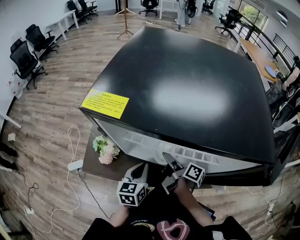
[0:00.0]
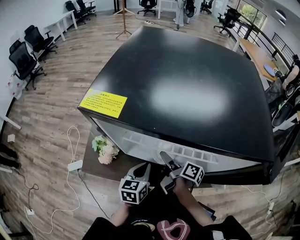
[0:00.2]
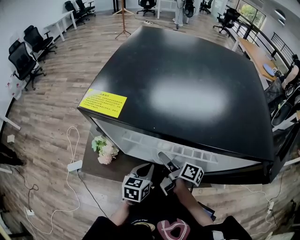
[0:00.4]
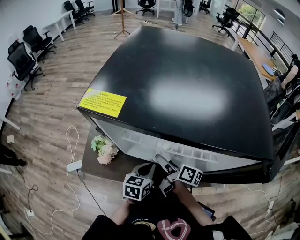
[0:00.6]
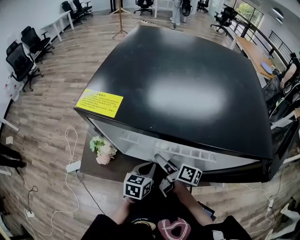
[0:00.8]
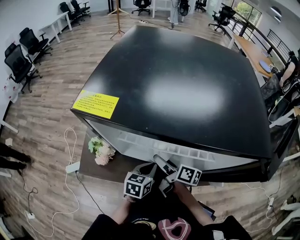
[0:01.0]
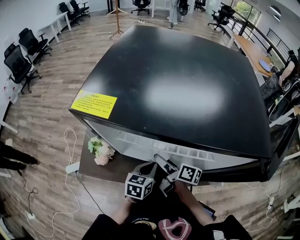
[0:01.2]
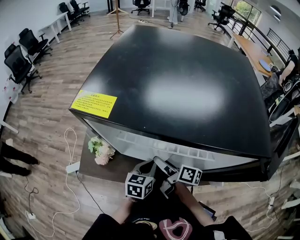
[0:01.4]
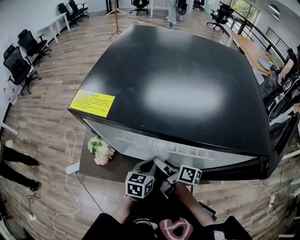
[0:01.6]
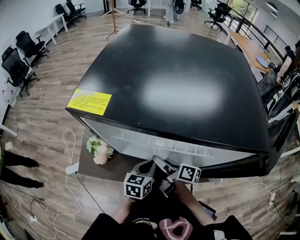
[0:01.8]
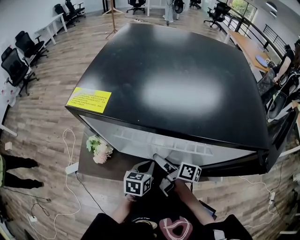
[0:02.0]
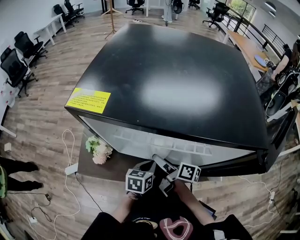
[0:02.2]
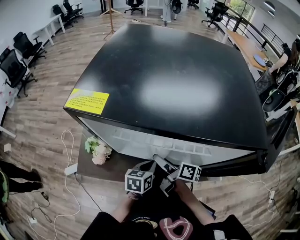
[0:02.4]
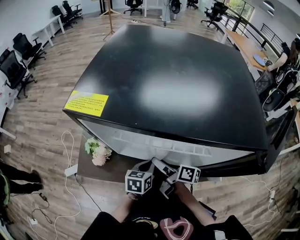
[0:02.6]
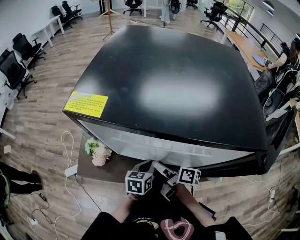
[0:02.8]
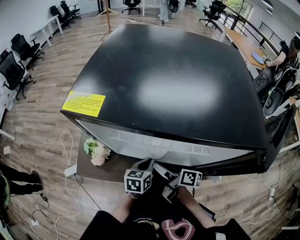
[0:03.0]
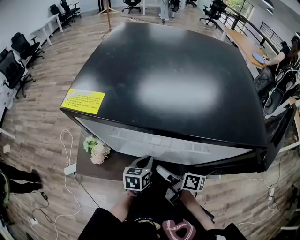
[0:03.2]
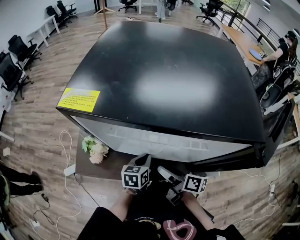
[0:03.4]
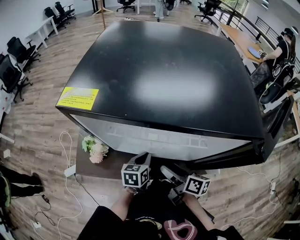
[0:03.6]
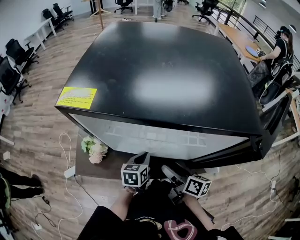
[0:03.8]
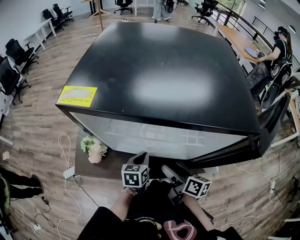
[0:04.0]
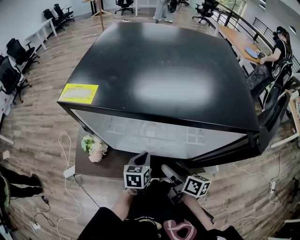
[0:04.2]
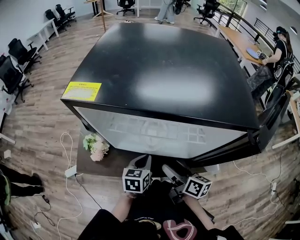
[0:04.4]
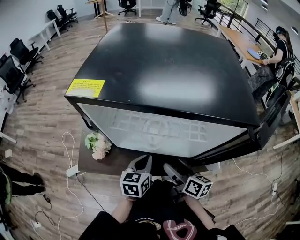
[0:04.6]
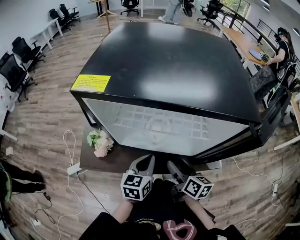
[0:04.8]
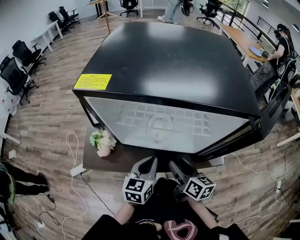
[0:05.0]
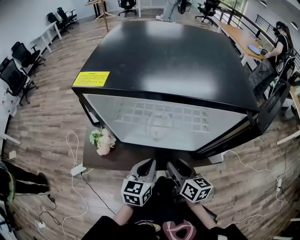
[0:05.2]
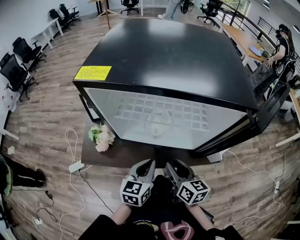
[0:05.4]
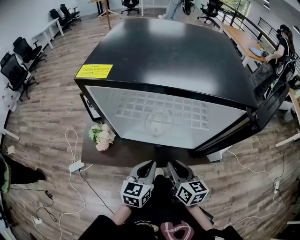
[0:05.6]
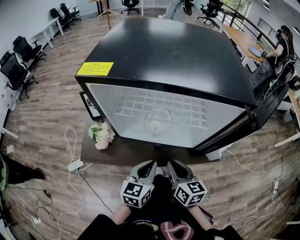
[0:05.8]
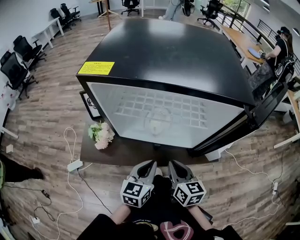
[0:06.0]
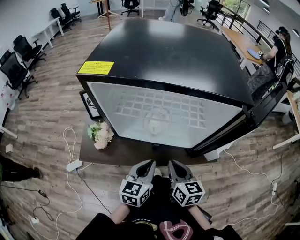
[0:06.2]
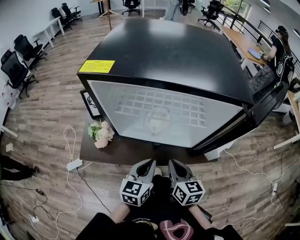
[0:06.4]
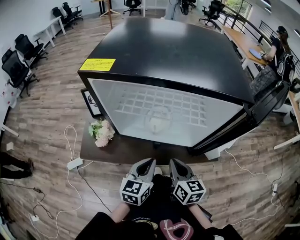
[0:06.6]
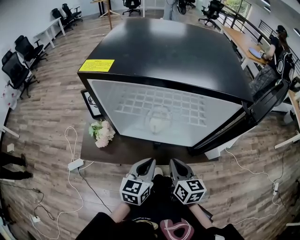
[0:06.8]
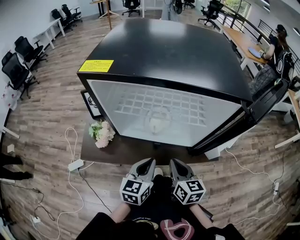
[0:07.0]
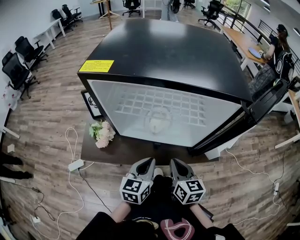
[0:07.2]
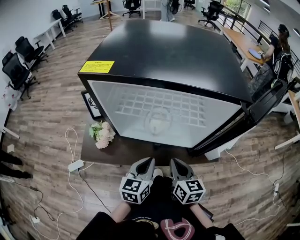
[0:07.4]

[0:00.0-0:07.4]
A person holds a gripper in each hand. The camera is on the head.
0:00.0 to 0:01.4: The left gripper moves some 5 cm.
0:04.4 to 0:06.0: The left gripper changes place by roughly 10 cm.

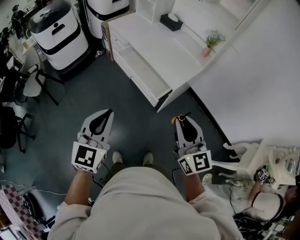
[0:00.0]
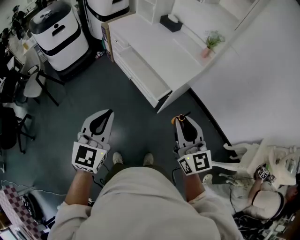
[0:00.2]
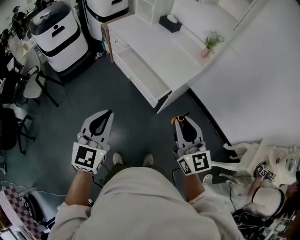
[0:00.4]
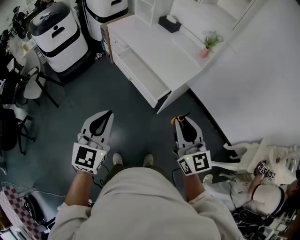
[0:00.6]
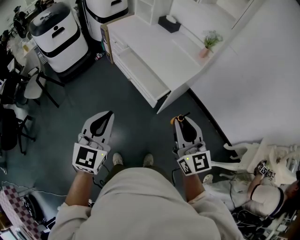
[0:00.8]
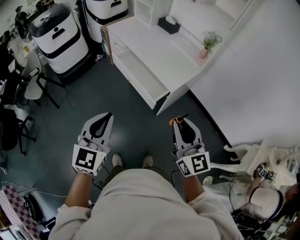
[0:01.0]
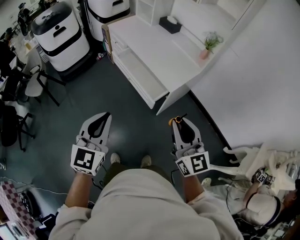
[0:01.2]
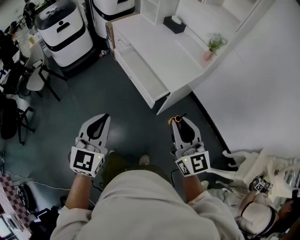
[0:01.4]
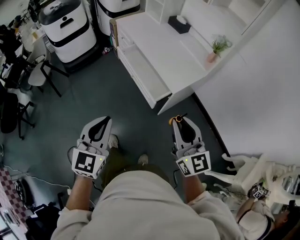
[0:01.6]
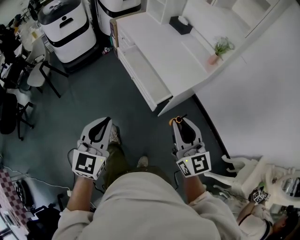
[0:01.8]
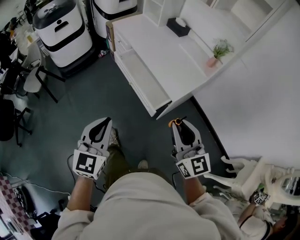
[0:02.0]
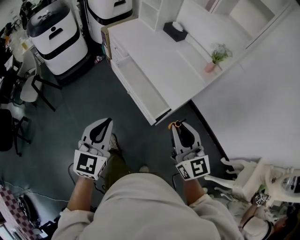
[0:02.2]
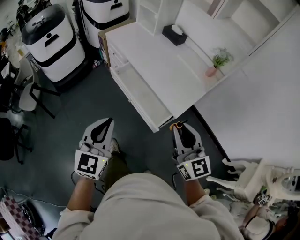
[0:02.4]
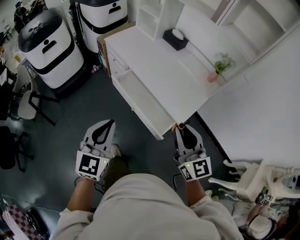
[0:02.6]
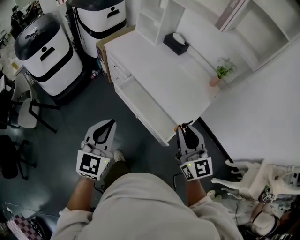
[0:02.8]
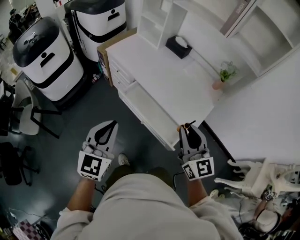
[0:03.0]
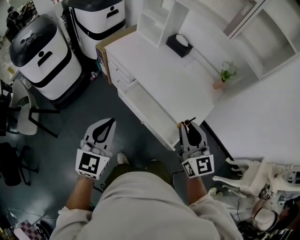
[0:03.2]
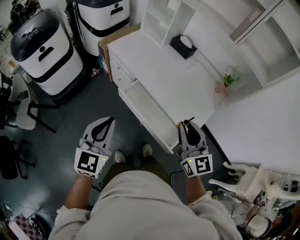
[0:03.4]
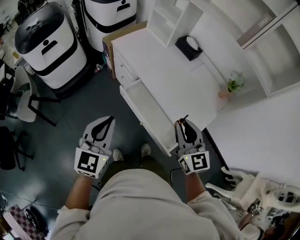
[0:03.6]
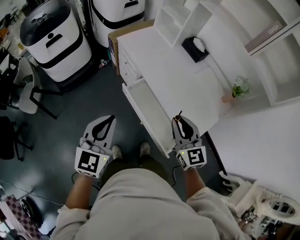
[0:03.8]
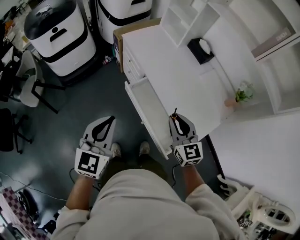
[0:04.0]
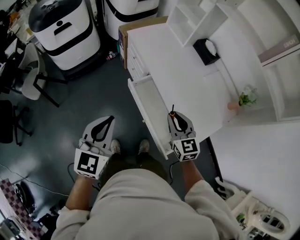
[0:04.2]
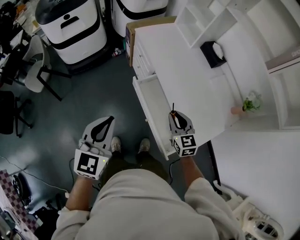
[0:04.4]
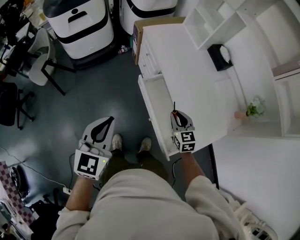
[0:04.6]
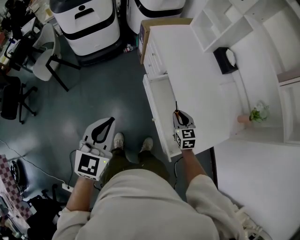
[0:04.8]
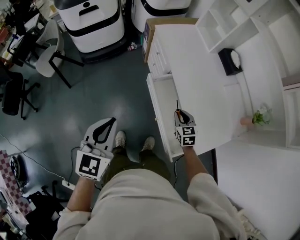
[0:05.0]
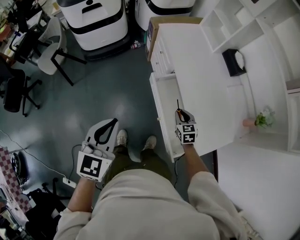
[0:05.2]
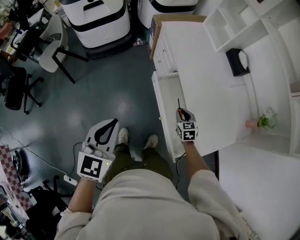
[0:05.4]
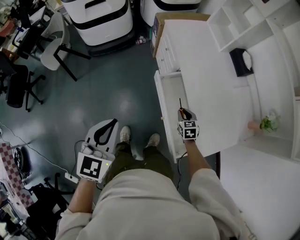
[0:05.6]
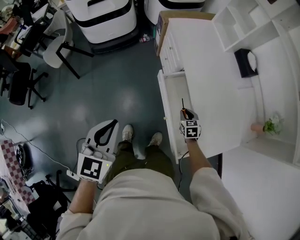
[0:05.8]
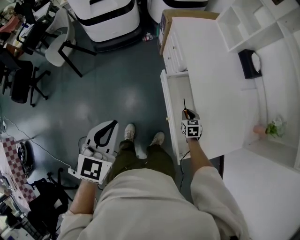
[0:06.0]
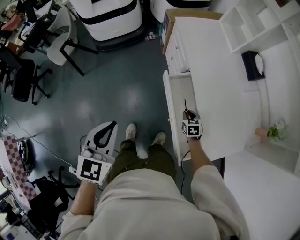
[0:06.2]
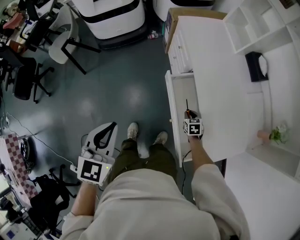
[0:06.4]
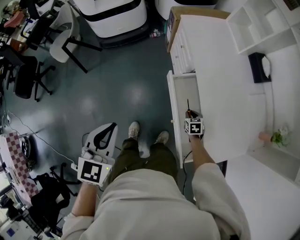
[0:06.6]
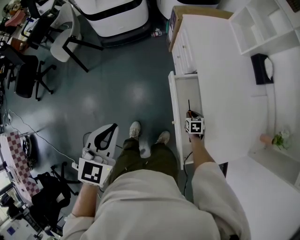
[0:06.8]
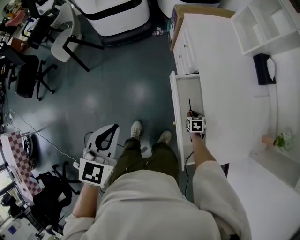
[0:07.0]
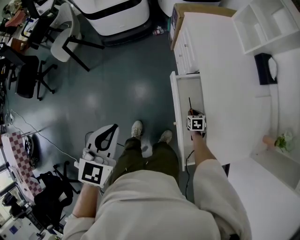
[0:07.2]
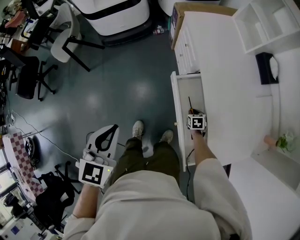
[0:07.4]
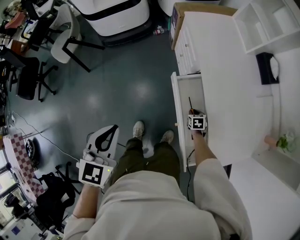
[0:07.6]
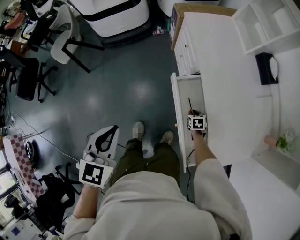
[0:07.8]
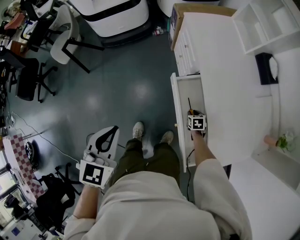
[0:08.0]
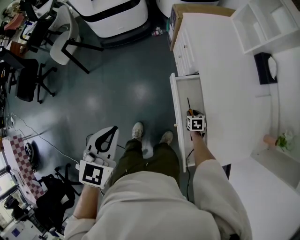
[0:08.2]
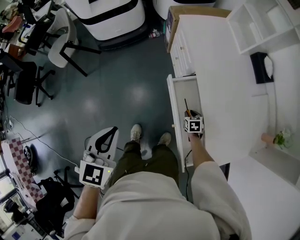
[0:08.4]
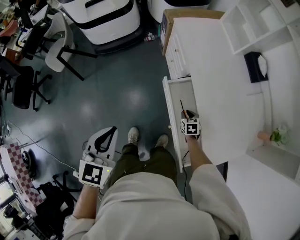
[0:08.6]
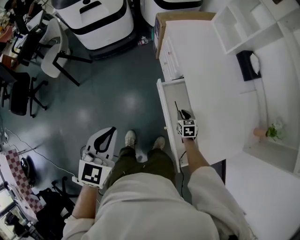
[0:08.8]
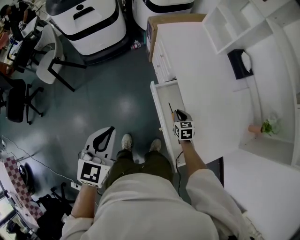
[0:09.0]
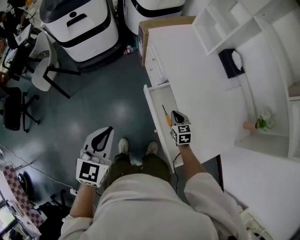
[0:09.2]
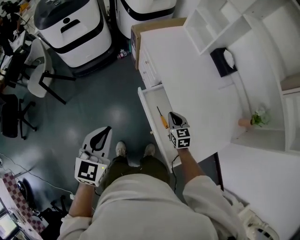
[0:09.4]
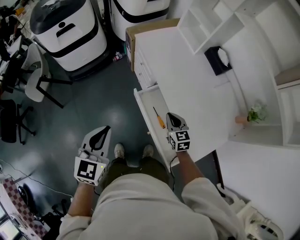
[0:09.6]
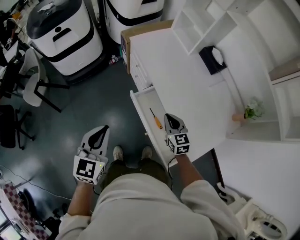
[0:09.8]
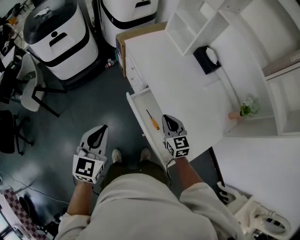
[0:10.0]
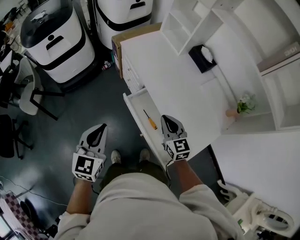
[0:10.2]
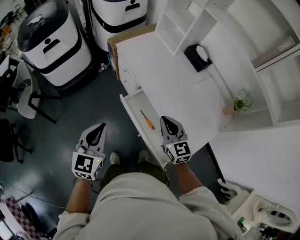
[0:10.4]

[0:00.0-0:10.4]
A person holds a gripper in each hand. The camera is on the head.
0:00.0 to 0:01.4: The grippers make only small movements.
0:01.4 to 0:03.0: Both grippers move forward and to the left, approximately 35 cm.
0:03.0 to 0:04.4: The right gripper shifts roughly 25 cm downward and forward, and turns by approximately 30 degrees; the left gripper ends up roughly 5 cm from where it was, and changes its angle by approximately 20 degrees.
0:04.4 to 0:06.0: The left gripper travels to the left by some 5 cm; the right gripper is displaced downward by some 25 cm, and swivels about 30 degrees.
0:06.0 to 0:07.4: The left gripper moves some 5 cm. Meanwhile the right gripper is displaced downward by some 10 cm.
0:07.4 to 0:09.0: The right gripper goes roughly 15 cm upward, and rotates roughly 20 degrees.
0:09.0 to 0:10.4: The right gripper travels upward by some 25 cm, and angles its fingers upward, by approximately 30 degrees. Meanwhile the left gripper shifts roughly 5 cm to the right.

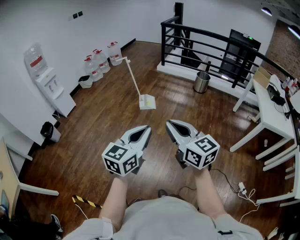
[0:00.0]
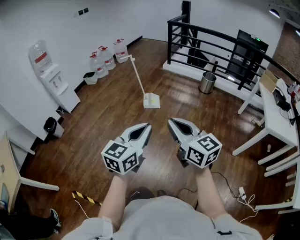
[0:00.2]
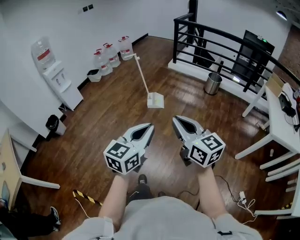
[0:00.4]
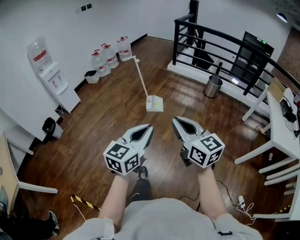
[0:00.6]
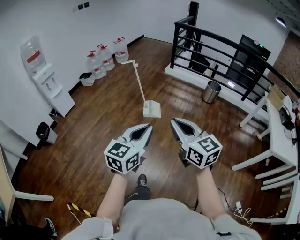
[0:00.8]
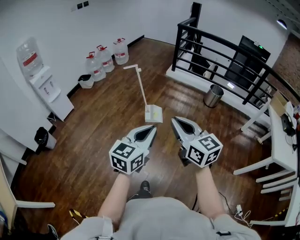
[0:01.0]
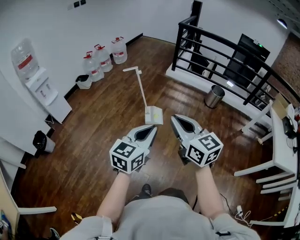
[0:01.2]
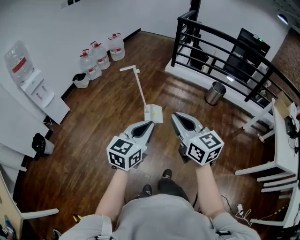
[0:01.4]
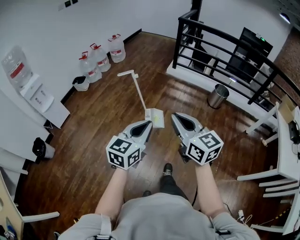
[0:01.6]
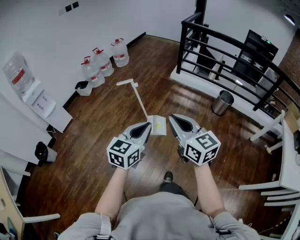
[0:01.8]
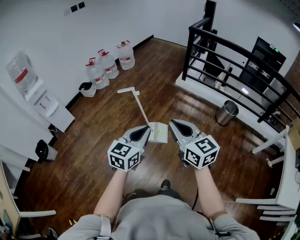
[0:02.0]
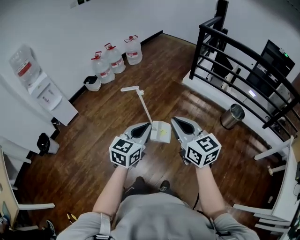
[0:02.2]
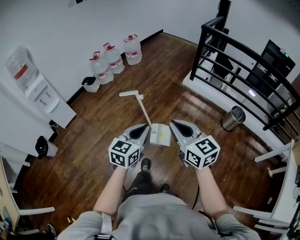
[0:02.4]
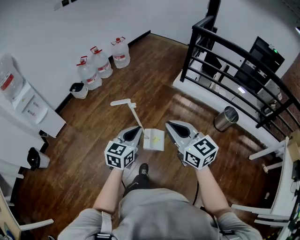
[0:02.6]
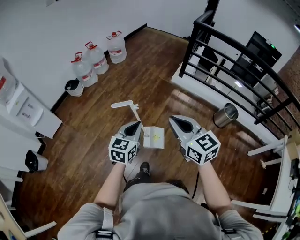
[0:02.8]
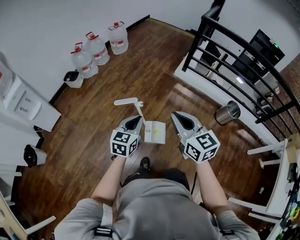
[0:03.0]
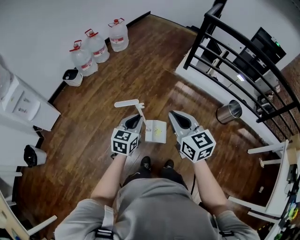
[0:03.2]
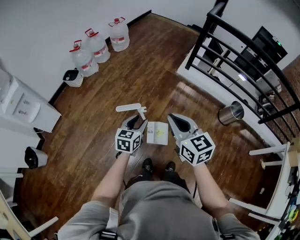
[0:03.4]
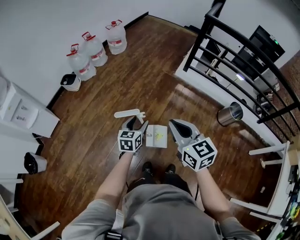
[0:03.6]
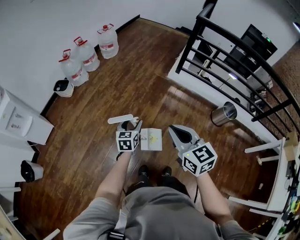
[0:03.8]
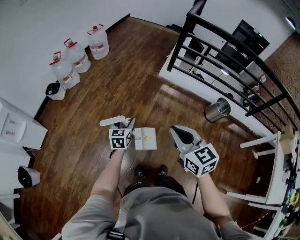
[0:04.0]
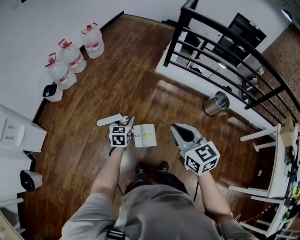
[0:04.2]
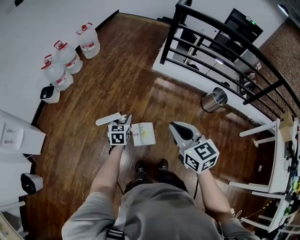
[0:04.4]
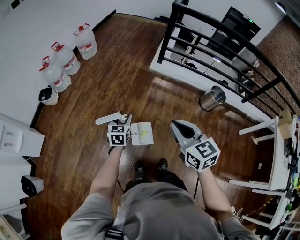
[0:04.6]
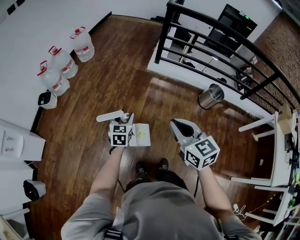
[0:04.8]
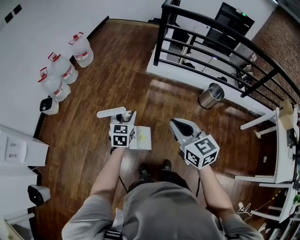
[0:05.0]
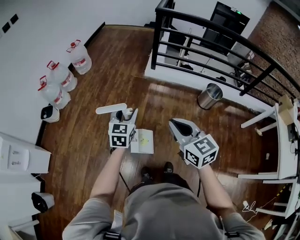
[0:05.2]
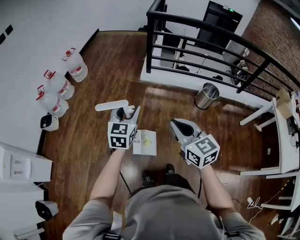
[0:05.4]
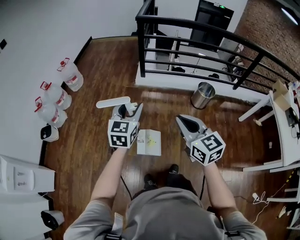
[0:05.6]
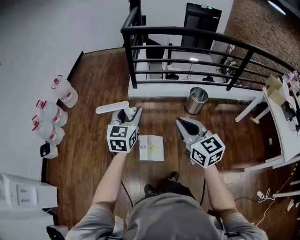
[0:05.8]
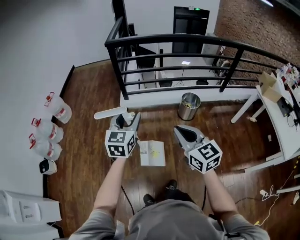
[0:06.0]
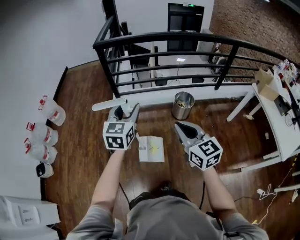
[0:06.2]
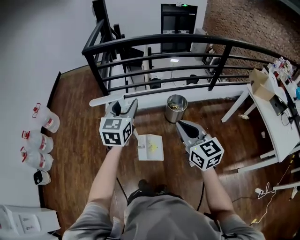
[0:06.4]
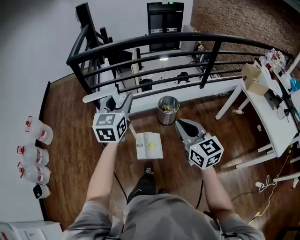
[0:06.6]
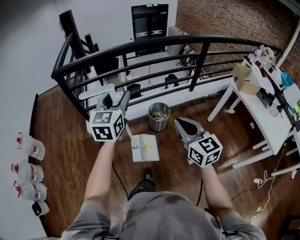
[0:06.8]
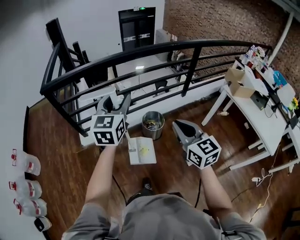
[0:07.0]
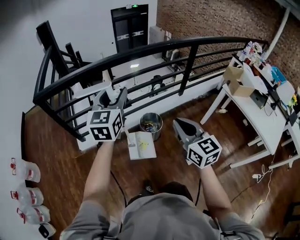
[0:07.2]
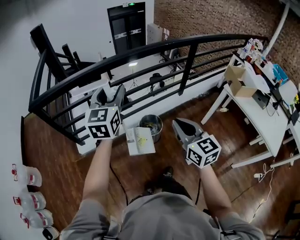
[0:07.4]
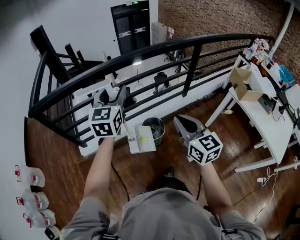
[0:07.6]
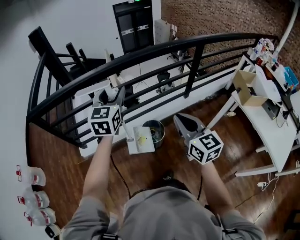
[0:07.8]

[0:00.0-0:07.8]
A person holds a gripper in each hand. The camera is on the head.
0:00.0 to 0:01.6: Both grippers are carried forward, approximately 50 cm.
0:01.6 to 0:03.2: The two grippers travel together, forward, some 40 cm.
0:03.2 to 0:04.6: The right gripper travels to the right by roughly 10 cm. The left gripper travels forward and downward by some 15 cm, and opens its fingers.
0:04.6 to 0:06.2: The right gripper shifts by some 35 cm, and changes its angle by roughly 30 degrees; the left gripper shifts by about 50 cm, and swivels roughly 40 degrees.
0:06.2 to 0:07.8: Both grippers are carried forward and to the right, roughly 60 cm. The right gripper changes its angle by some 20 degrees.
